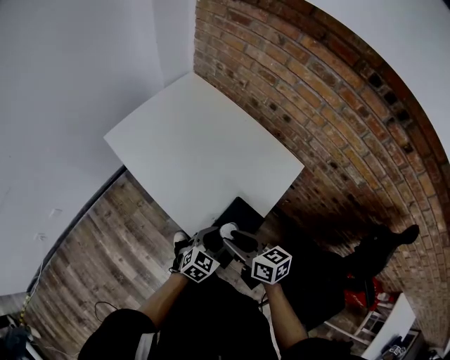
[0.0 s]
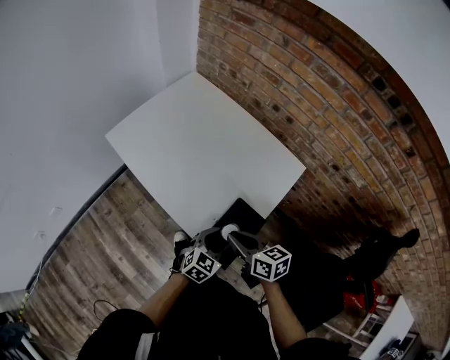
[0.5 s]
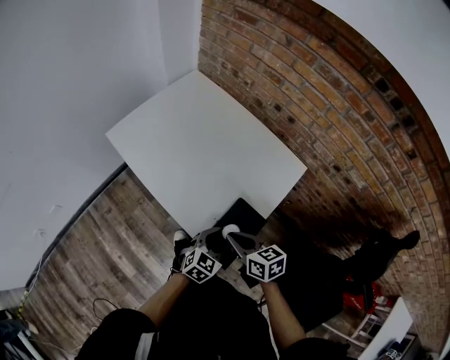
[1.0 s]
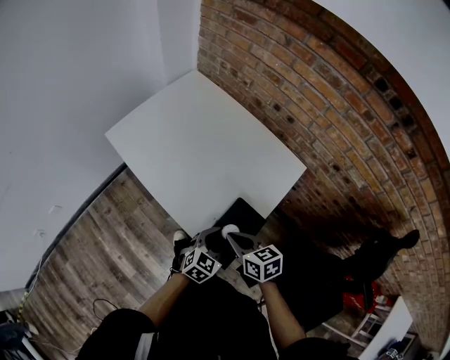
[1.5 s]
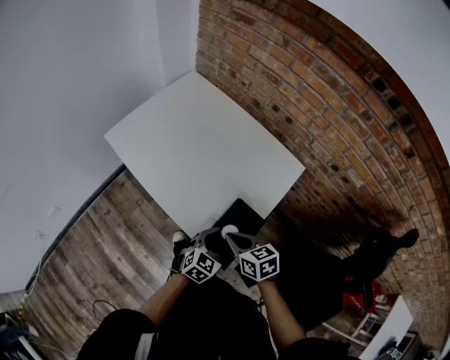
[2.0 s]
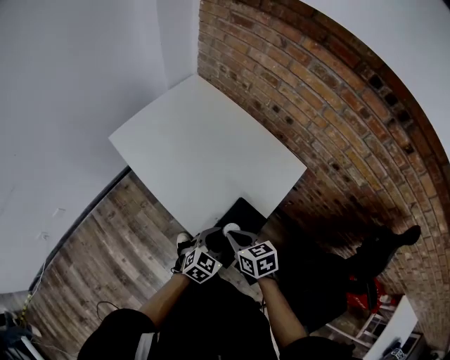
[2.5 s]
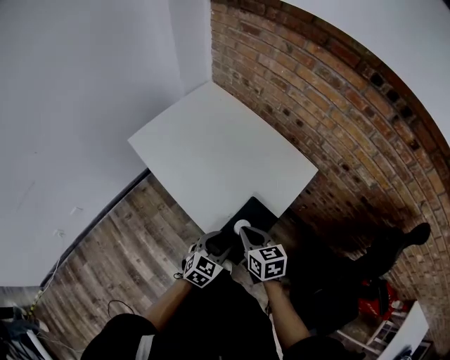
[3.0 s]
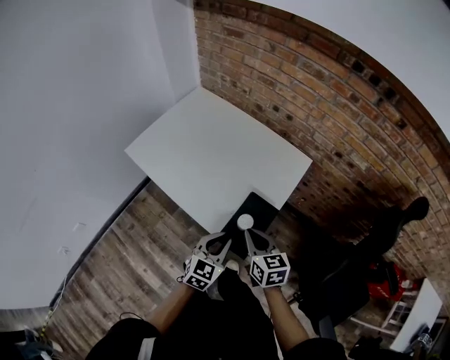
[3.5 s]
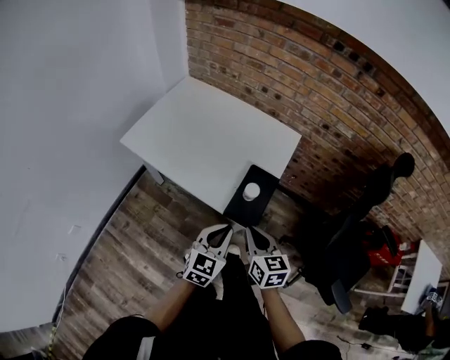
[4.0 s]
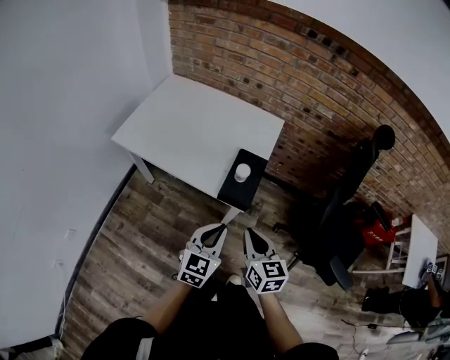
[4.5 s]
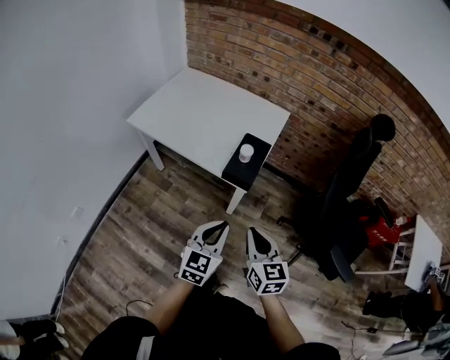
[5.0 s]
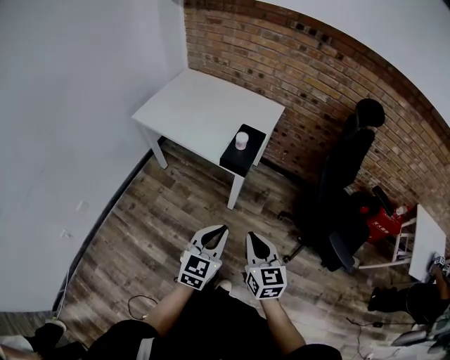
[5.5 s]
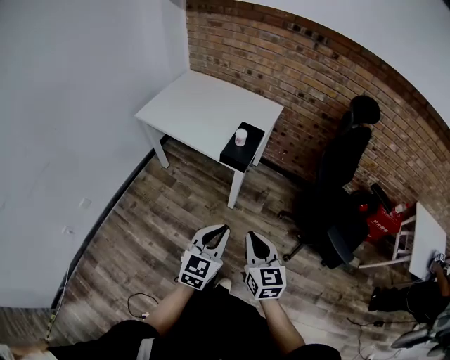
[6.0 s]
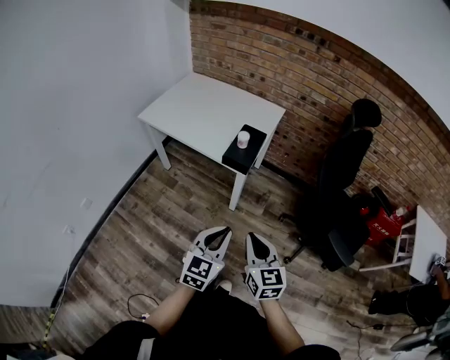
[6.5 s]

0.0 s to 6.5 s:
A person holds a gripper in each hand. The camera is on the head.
0.0 to 2.0 s: The right gripper closes.
2.0 to 4.5 s: The left gripper is displaced backward, upward and to the left by some 30 cm, and closes. The right gripper travels backward and upward by some 25 cm, and turns by about 40 degrees.
4.5 to 6.5 s: Both grippers move backward, about 25 cm.

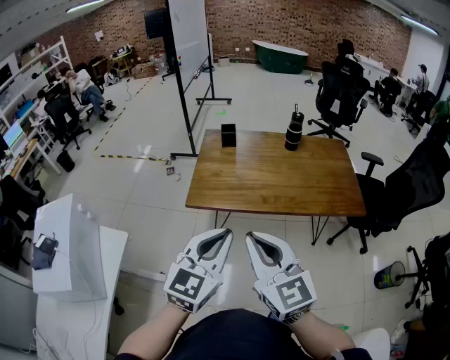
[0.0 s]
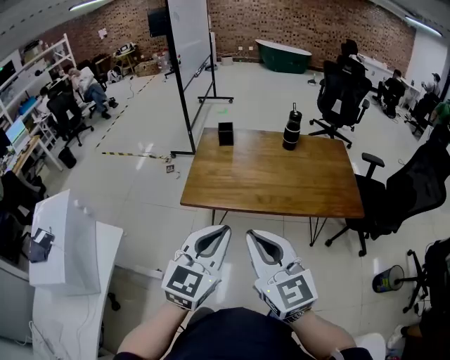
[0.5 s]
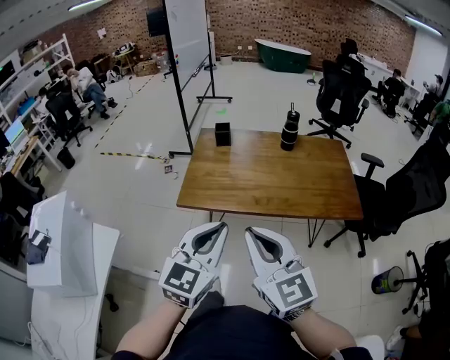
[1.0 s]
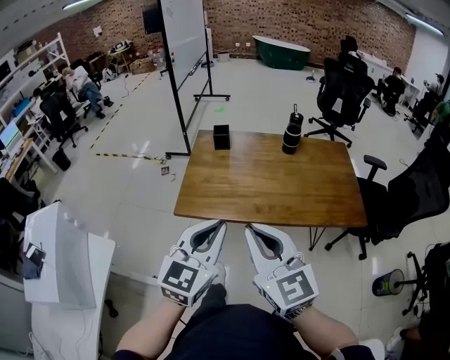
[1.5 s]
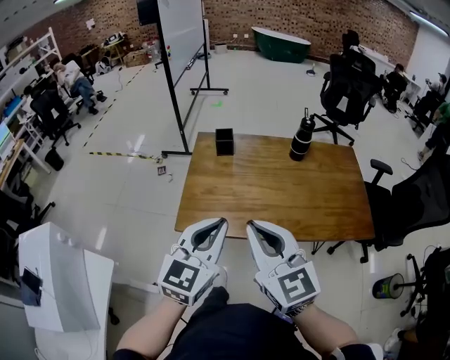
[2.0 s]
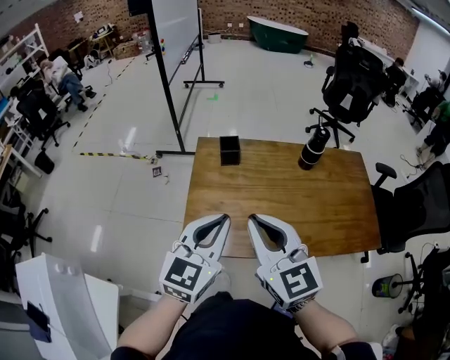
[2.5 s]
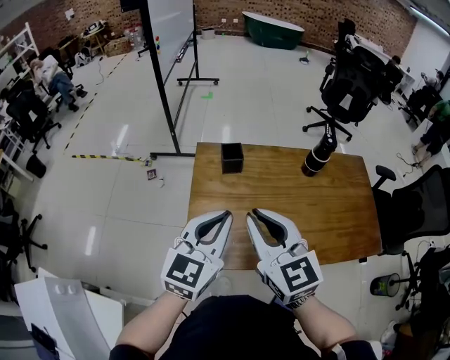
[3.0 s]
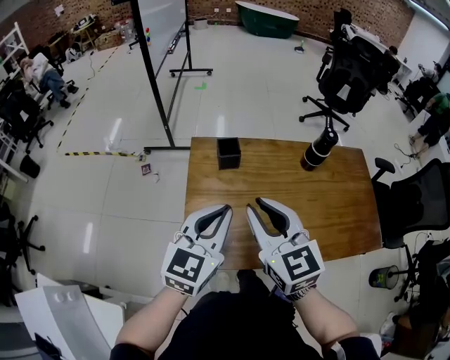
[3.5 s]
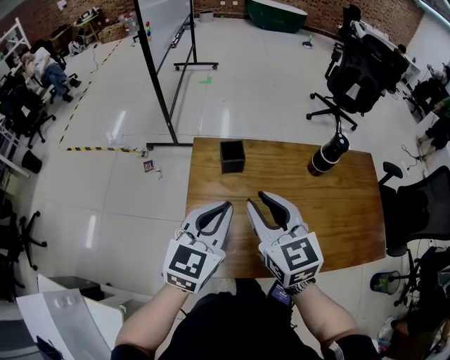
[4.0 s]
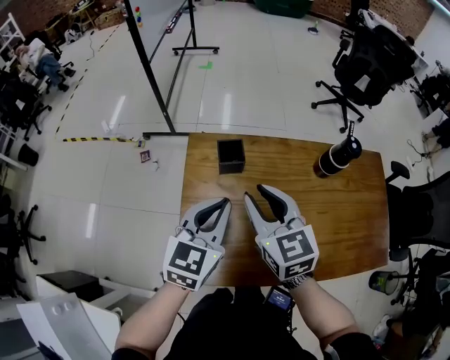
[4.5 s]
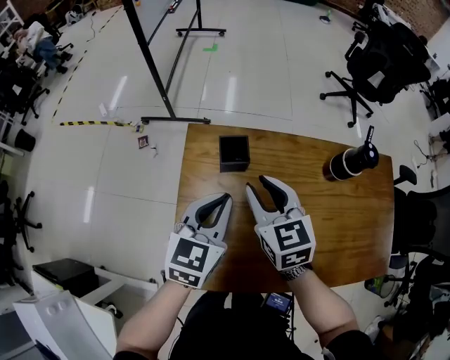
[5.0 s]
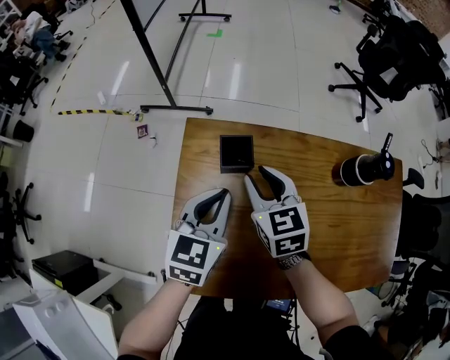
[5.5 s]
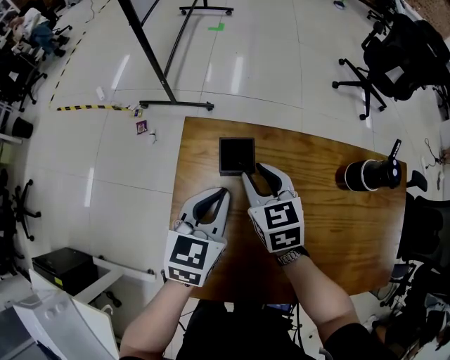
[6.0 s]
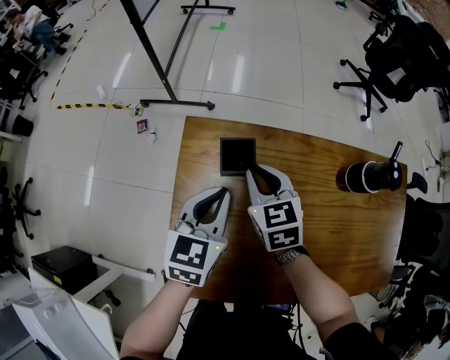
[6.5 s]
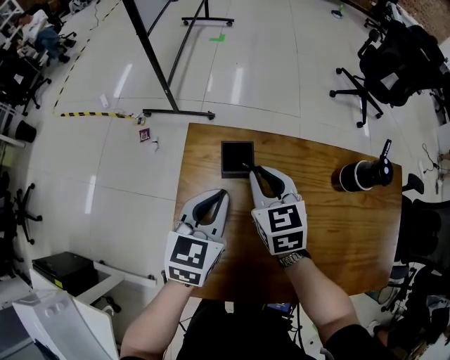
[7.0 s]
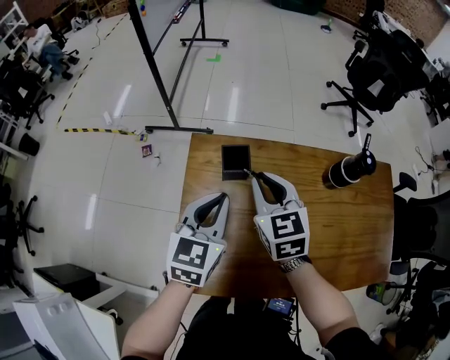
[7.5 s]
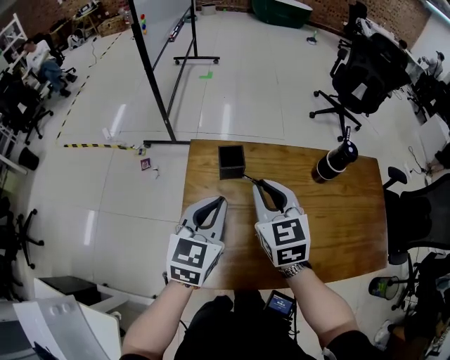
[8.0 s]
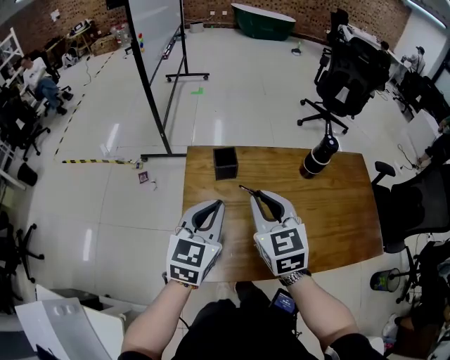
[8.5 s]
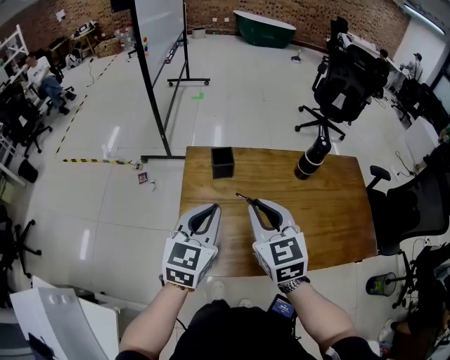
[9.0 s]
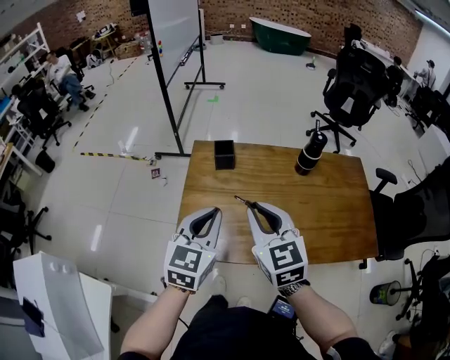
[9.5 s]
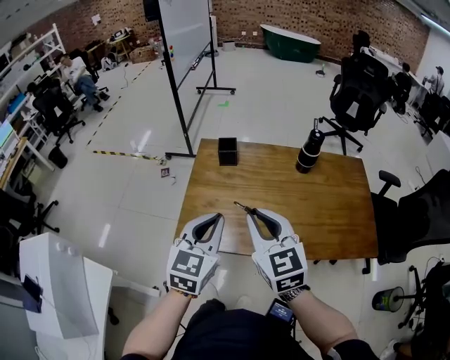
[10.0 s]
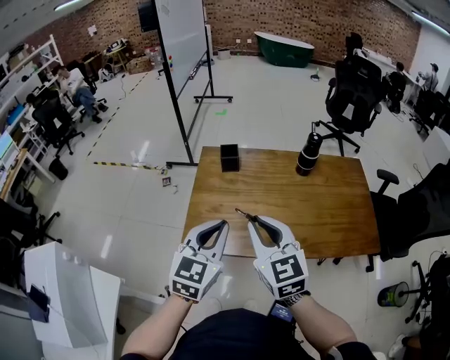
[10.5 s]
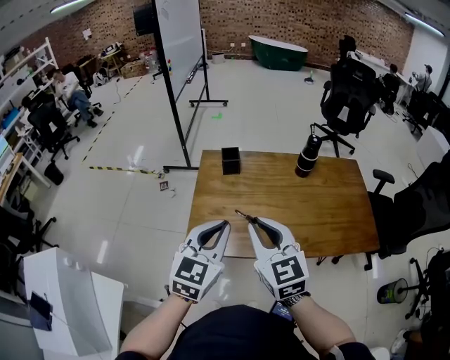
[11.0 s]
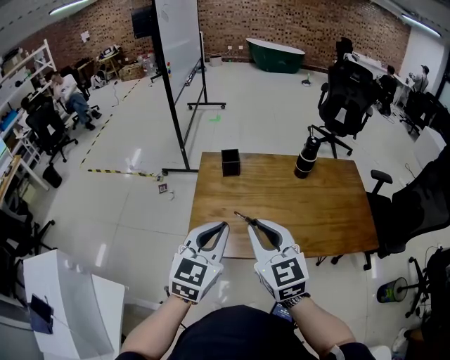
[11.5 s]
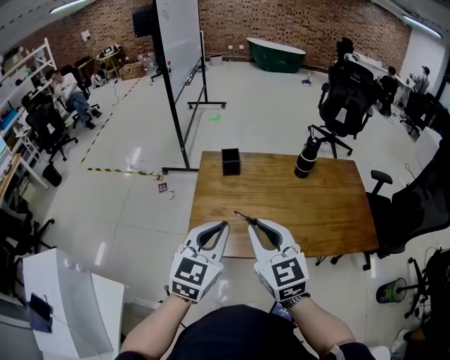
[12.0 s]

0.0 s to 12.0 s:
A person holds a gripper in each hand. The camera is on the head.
0.0 to 2.0 s: Both grippers move forward, about 20 cm.
2.0 to 4.0 s: Both grippers move forward, roughly 30 cm. The right gripper opens up.
4.0 to 6.0 s: The right gripper moves downward and forward, roughly 30 cm. Meanwhile the left gripper heads forward and downward, covering some 25 cm.
6.0 to 8.0 s: The two grippers go about 20 cm upward and backward.
8.0 to 10.0 s: Both grippers travel together backward, approximately 25 cm.
10.0 to 12.0 s: The right gripper shifts roughly 5 cm to the left; the left gripper changes place by approximately 5 cm.

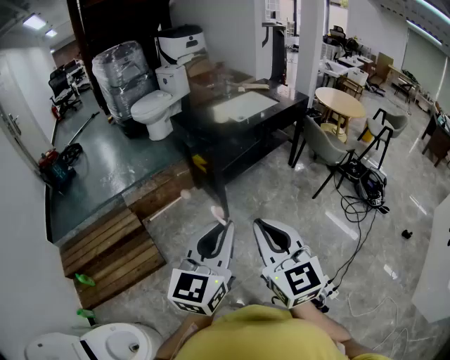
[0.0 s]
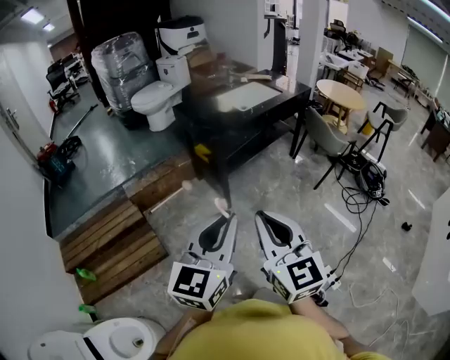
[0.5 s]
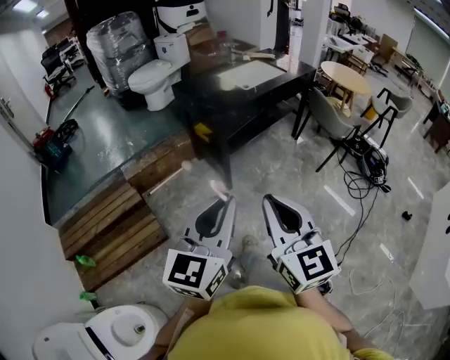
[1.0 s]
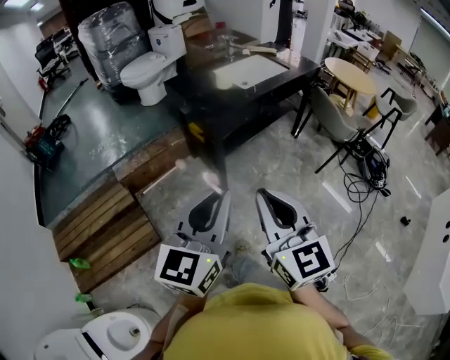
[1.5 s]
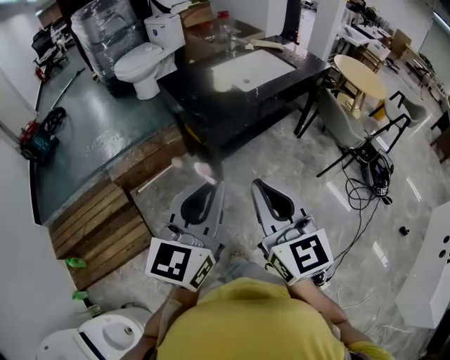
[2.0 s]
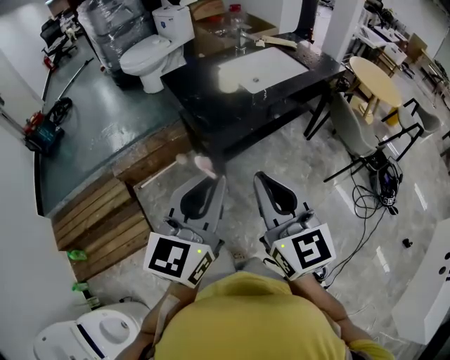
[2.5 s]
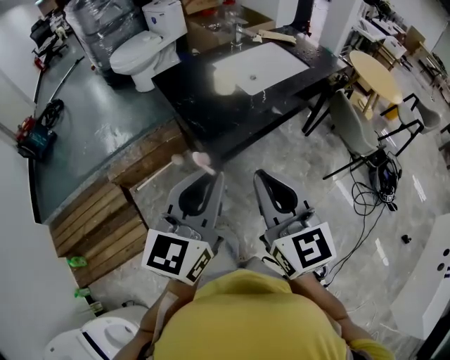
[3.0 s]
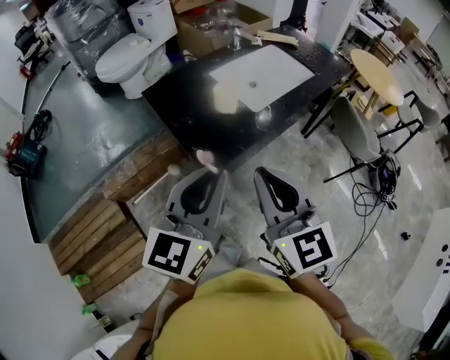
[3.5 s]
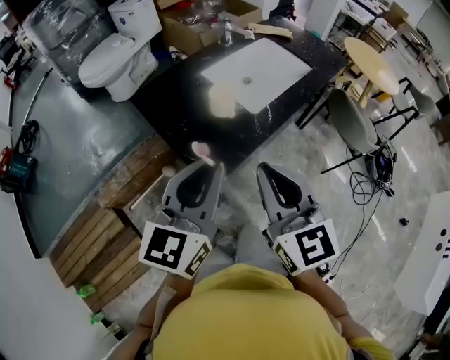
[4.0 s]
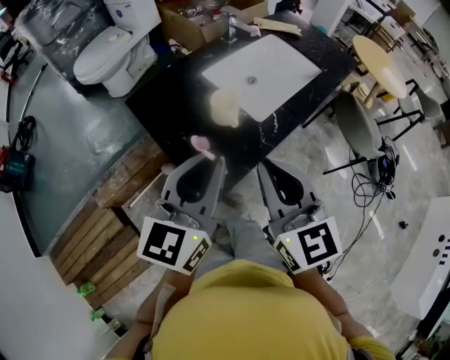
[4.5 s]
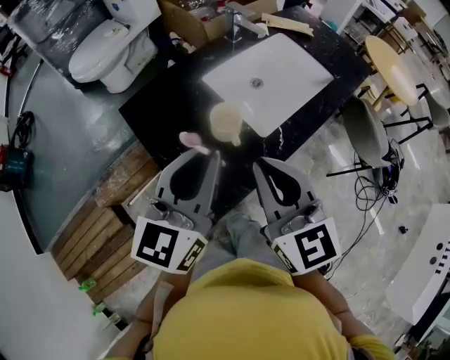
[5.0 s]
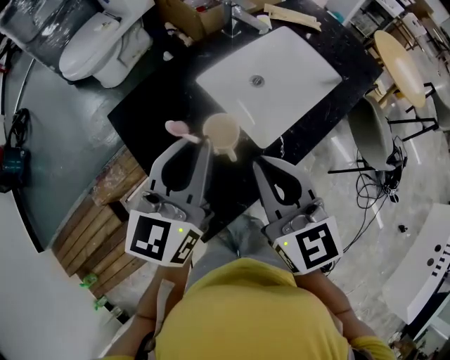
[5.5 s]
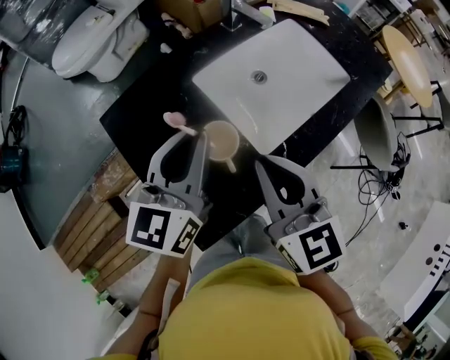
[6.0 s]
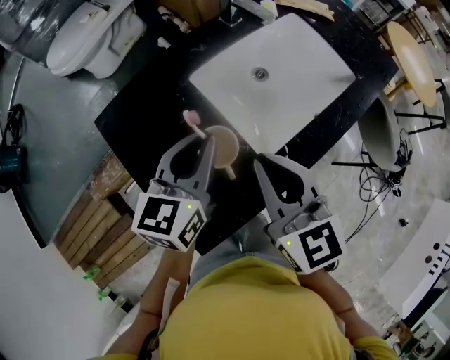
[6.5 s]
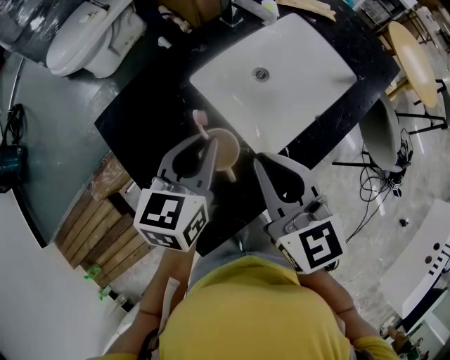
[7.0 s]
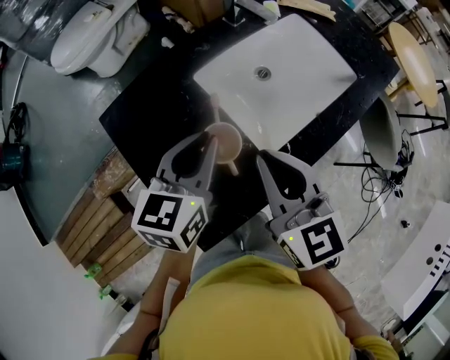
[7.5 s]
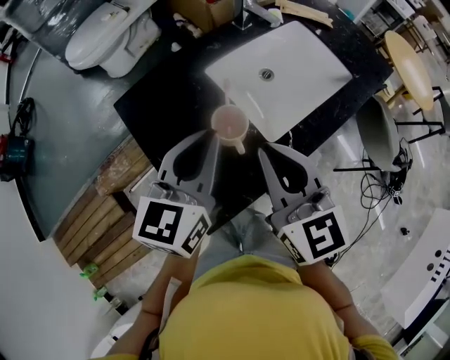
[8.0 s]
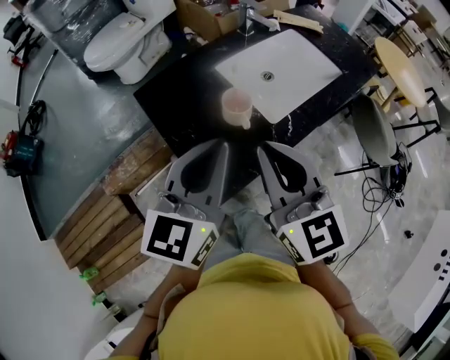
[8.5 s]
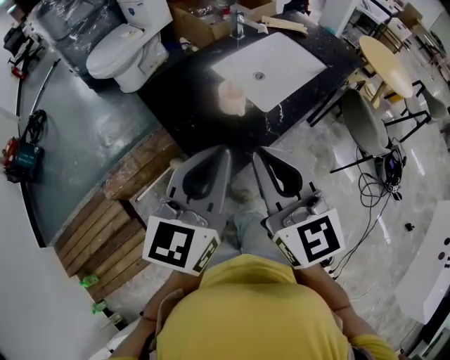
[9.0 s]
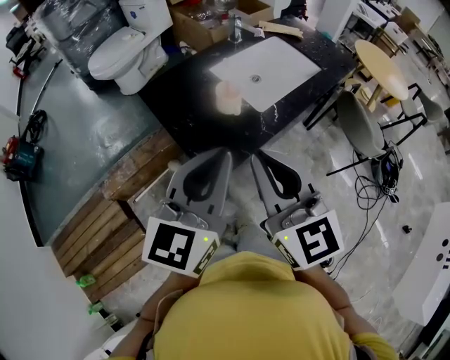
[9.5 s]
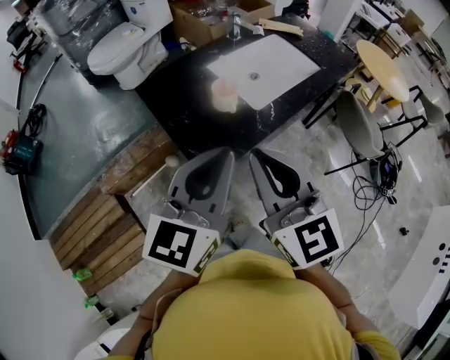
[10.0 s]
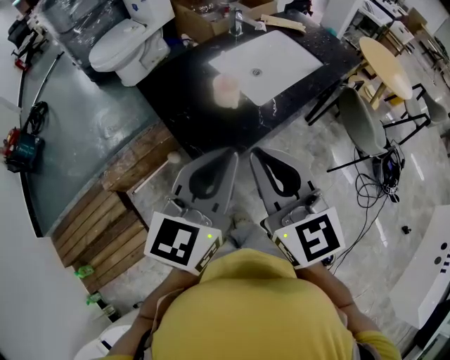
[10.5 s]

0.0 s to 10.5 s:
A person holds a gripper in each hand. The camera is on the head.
0.0 to 2.0 s: Both grippers travel together forward, some 25 cm.
2.0 to 4.0 s: Both grippers travel together forward, approximately 35 cm.
4.0 to 6.5 s: The right gripper is displaced forward by roughly 25 cm. The left gripper travels forward and downward by about 35 cm.
6.5 to 8.5 s: Both grippers travel together backward and upward, approximately 20 cm.
8.5 to 10.5 s: Both grippers travel together backward, roughly 10 cm.
